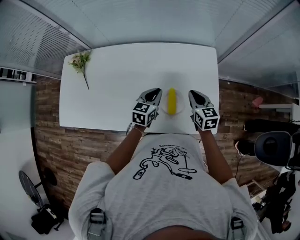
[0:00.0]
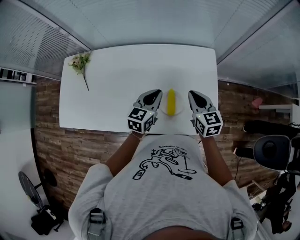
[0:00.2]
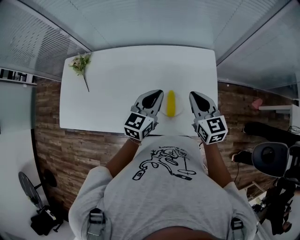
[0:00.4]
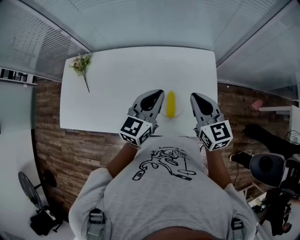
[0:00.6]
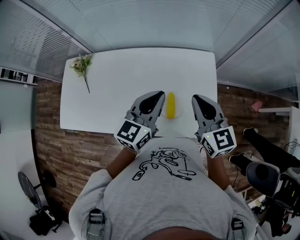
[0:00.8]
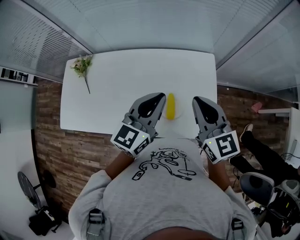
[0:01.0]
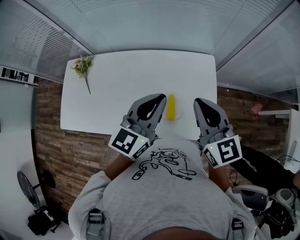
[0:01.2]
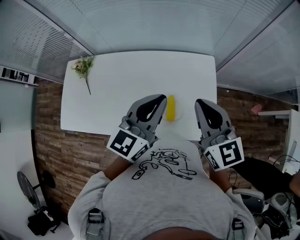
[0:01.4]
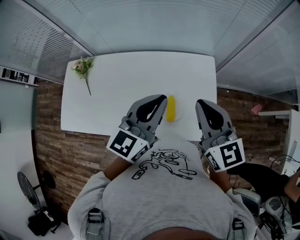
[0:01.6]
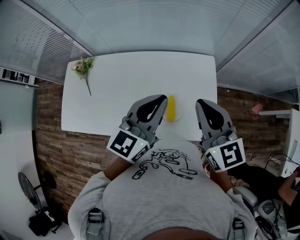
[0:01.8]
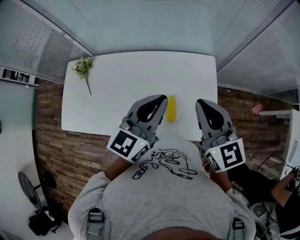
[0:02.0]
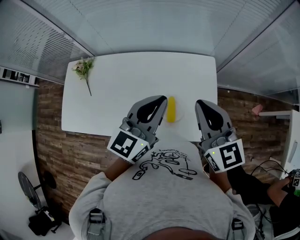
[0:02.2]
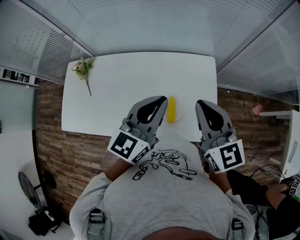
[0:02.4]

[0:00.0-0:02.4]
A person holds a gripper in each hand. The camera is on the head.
0.0 to 1.2 s: Both grippers move upward, about 25 cm. The left gripper turns by some 30 degrees. The right gripper changes its angle by roughly 20 degrees.
1.2 to 2.4 s: The grippers move only a little.

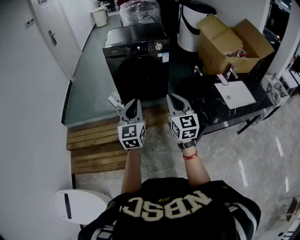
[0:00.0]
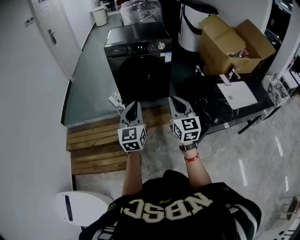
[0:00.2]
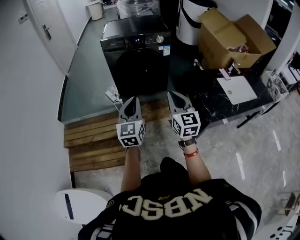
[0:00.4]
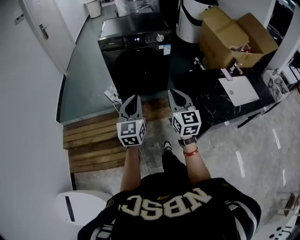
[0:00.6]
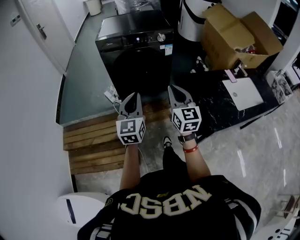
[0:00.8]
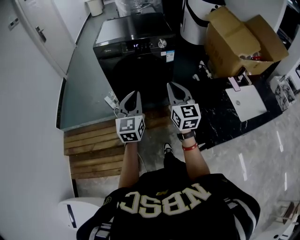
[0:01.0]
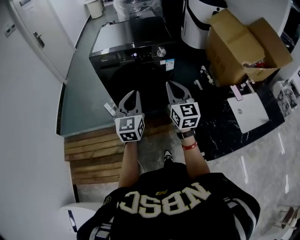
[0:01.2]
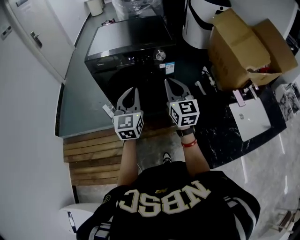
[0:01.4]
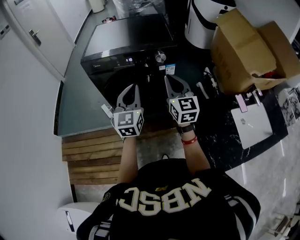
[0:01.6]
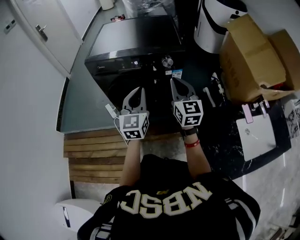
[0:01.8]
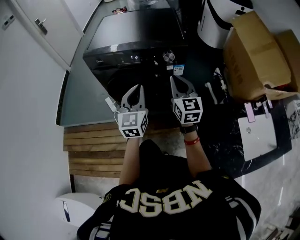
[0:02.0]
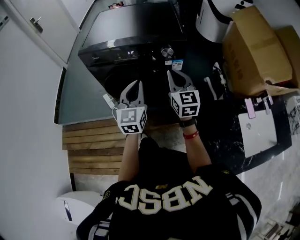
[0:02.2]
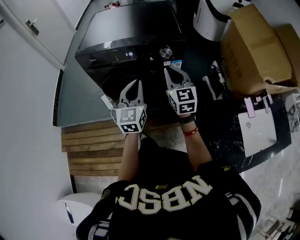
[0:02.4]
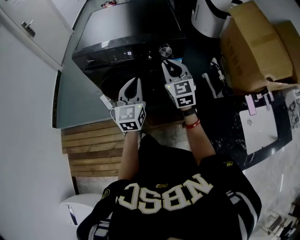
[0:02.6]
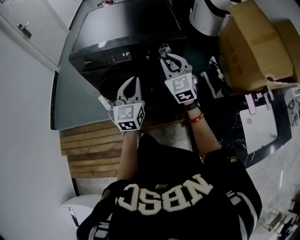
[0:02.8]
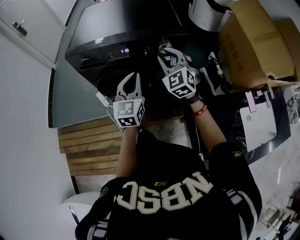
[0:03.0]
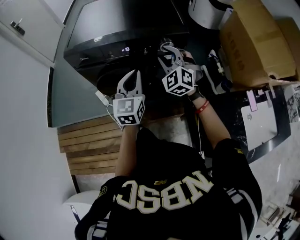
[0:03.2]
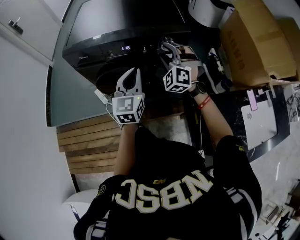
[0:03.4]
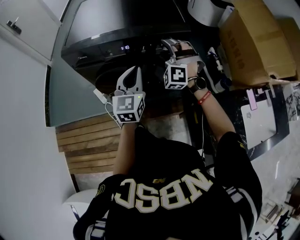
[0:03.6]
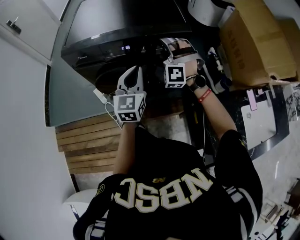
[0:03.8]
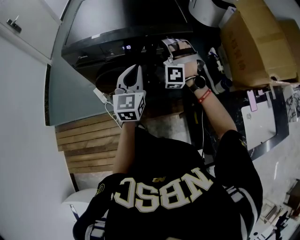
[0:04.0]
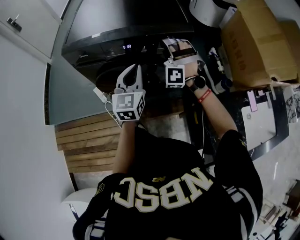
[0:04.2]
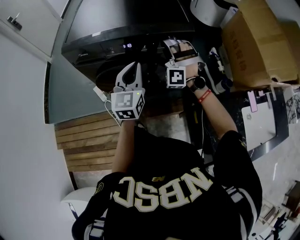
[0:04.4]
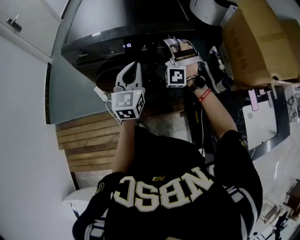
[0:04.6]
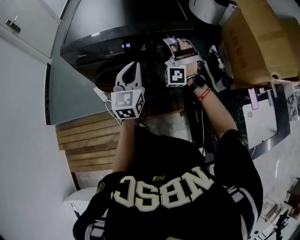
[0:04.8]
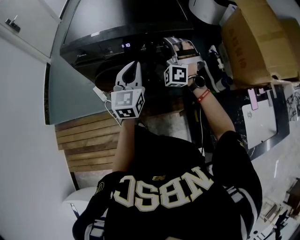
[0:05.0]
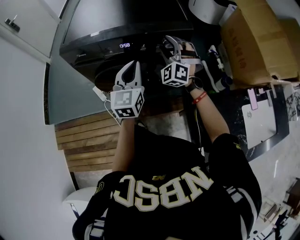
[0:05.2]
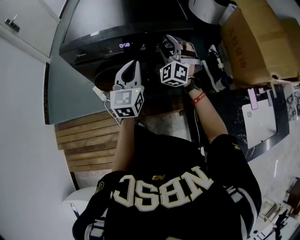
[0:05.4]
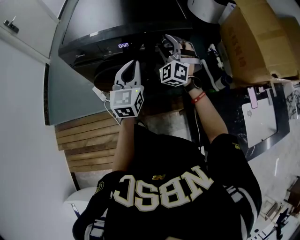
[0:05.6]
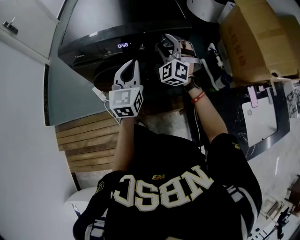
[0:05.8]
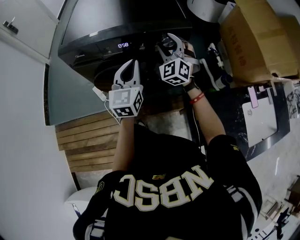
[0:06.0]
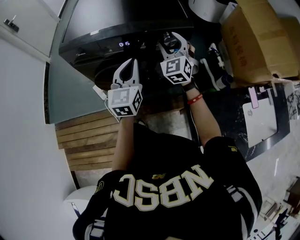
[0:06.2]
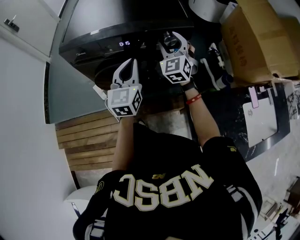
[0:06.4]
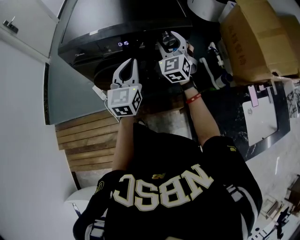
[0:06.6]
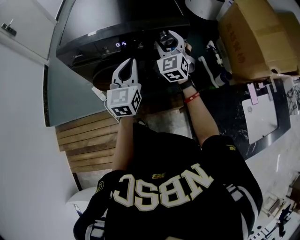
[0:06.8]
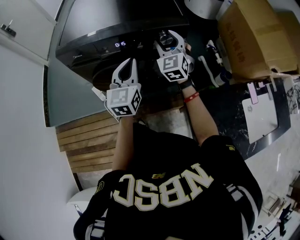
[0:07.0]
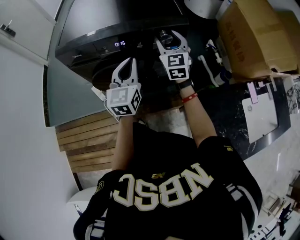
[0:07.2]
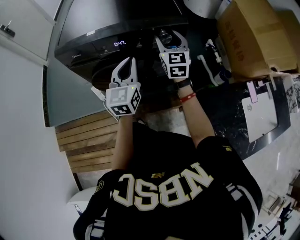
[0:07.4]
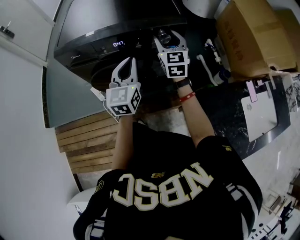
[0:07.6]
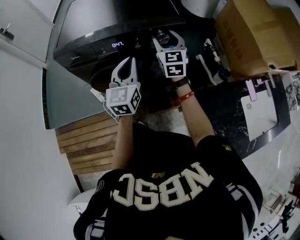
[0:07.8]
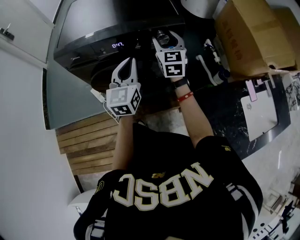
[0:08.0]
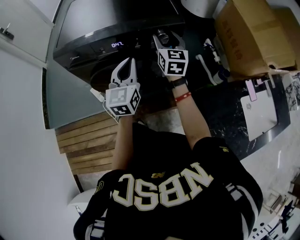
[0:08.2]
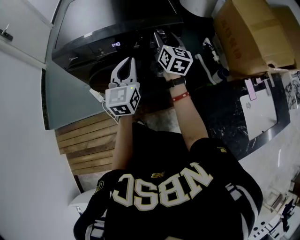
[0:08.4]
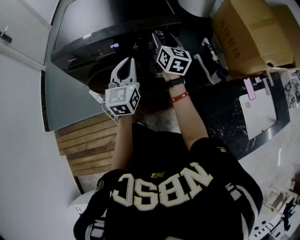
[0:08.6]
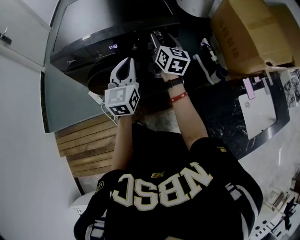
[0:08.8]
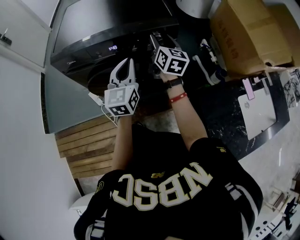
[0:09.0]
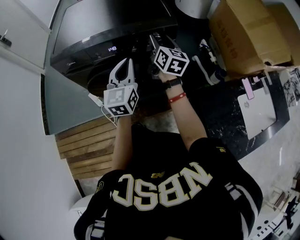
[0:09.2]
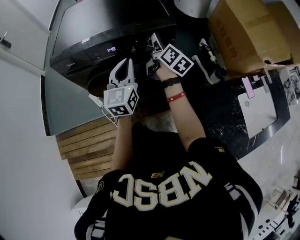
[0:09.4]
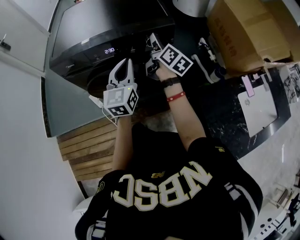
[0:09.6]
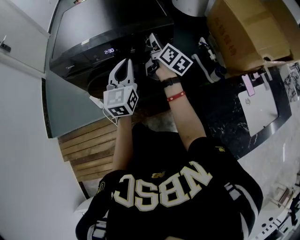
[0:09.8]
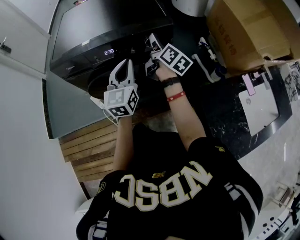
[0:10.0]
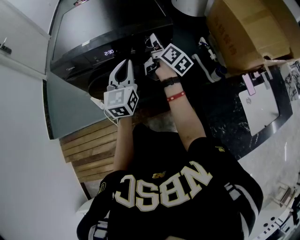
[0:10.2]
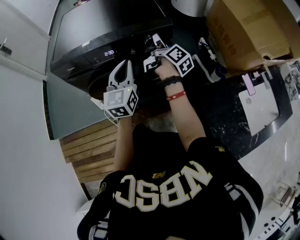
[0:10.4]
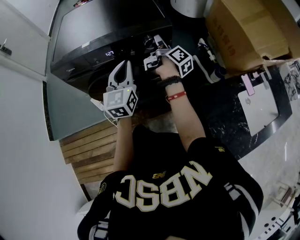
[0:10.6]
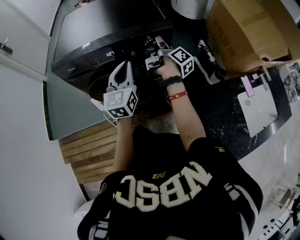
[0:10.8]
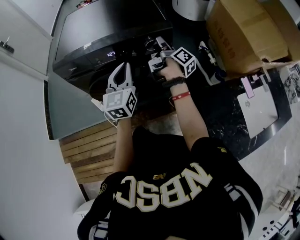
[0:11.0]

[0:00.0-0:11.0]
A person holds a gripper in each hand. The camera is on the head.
0.0 to 1.6 s: Both grippers are carried forward, approximately 40 cm.
1.6 to 3.2 s: The two grippers go roughly 15 cm forward and downward. The right gripper rotates around the line of its fingers by some 50 degrees, counterclockwise from behind, and opens its fingers.
3.2 to 4.8 s: The right gripper ends up about 5 cm from where it was, and turns by roughly 40 degrees.
4.8 to 6.2 s: The right gripper rolls clockwise, seen from behind, by about 50 degrees.
6.2 to 7.8 s: The right gripper turns by roughly 30 degrees.
7.8 to 9.4 s: The right gripper rolls clockwise, seen from behind, by approximately 60 degrees.
9.4 to 11.0 s: The right gripper turns by some 40 degrees.

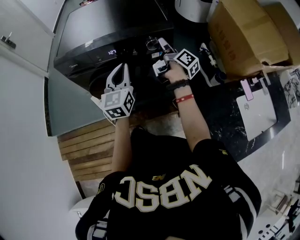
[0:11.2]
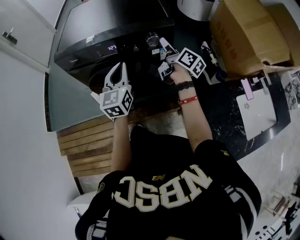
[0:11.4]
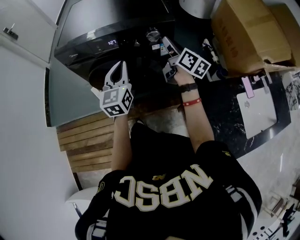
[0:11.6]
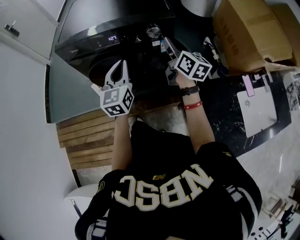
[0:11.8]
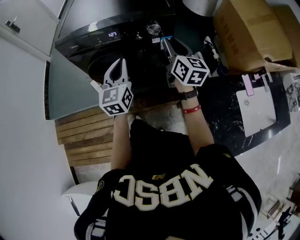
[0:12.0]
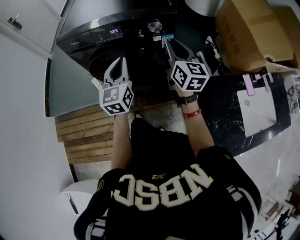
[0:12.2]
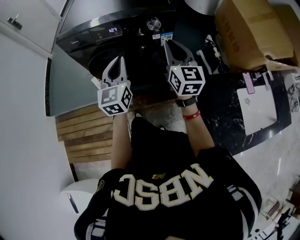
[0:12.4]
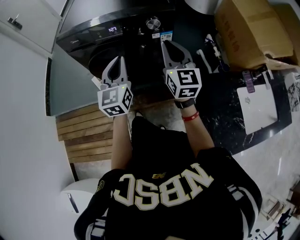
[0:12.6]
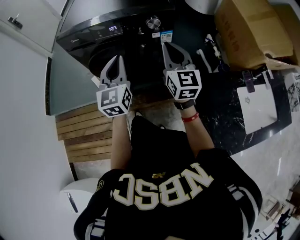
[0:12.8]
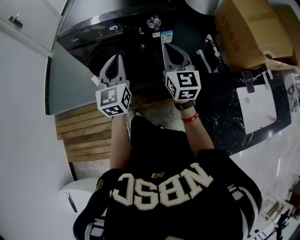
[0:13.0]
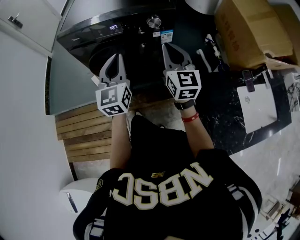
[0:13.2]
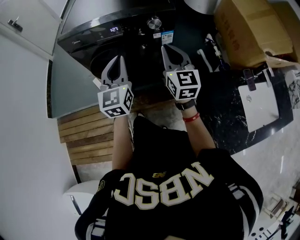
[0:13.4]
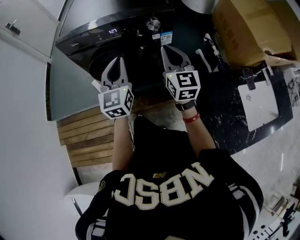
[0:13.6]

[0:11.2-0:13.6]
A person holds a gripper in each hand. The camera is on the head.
11.2 to 12.4 s: The right gripper goes some 15 cm backward, twists some 70 degrees counterclockwise, seen from behind, and closes its fingers; the left gripper goes roughly 10 cm backward.
12.4 to 13.6 s: The grippers make only small movements.

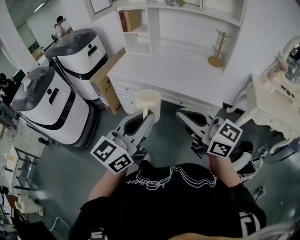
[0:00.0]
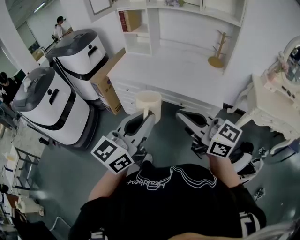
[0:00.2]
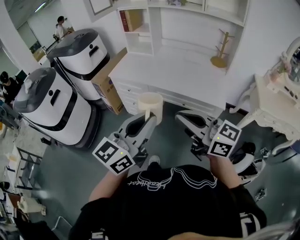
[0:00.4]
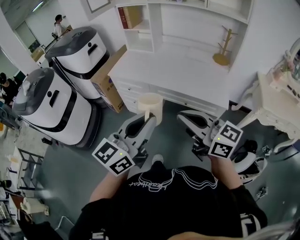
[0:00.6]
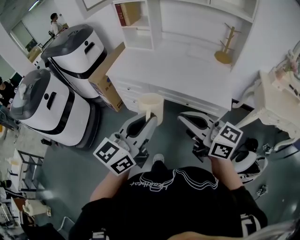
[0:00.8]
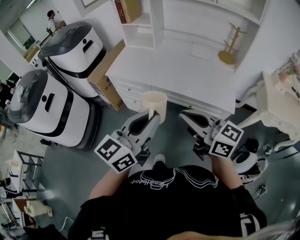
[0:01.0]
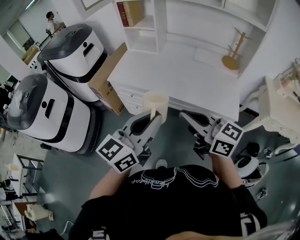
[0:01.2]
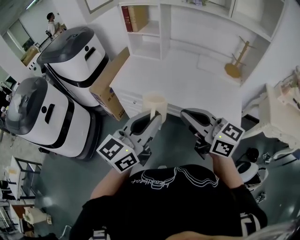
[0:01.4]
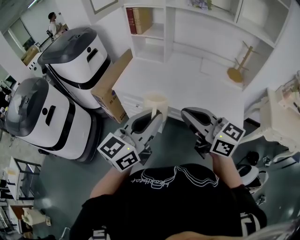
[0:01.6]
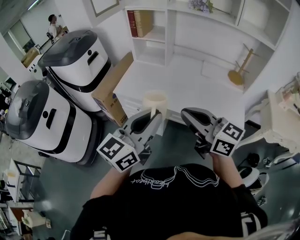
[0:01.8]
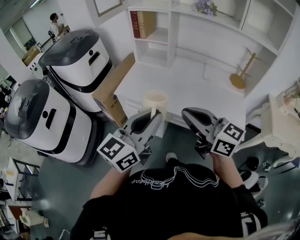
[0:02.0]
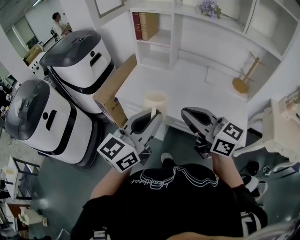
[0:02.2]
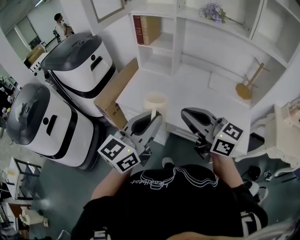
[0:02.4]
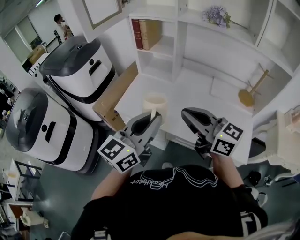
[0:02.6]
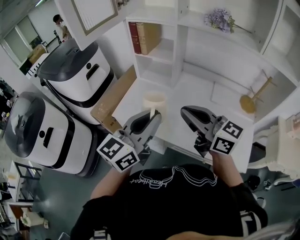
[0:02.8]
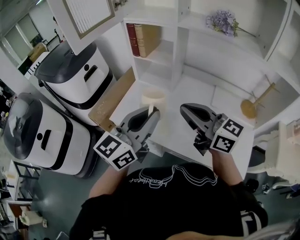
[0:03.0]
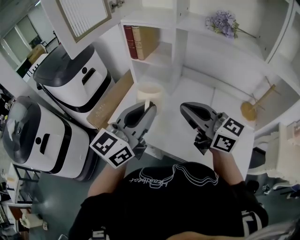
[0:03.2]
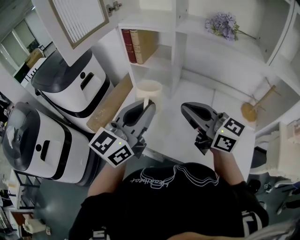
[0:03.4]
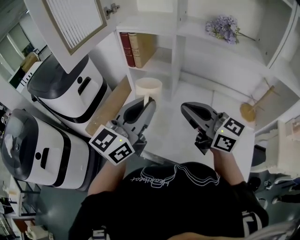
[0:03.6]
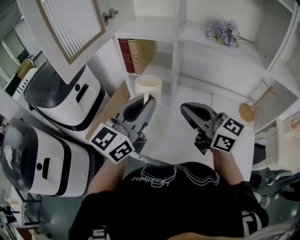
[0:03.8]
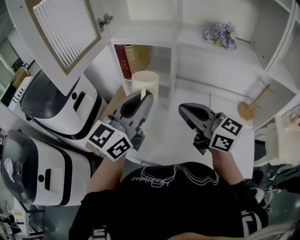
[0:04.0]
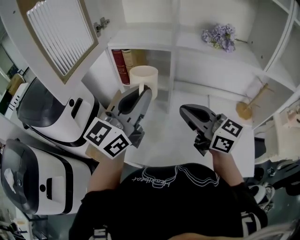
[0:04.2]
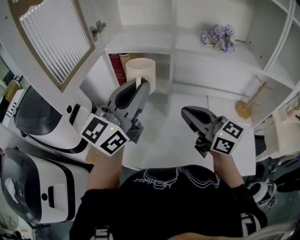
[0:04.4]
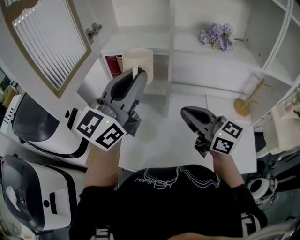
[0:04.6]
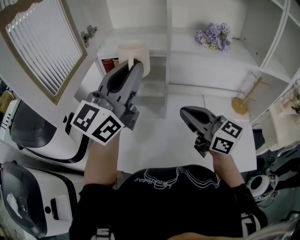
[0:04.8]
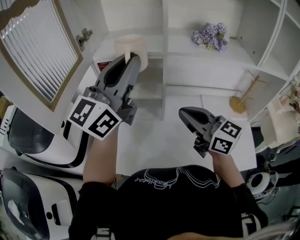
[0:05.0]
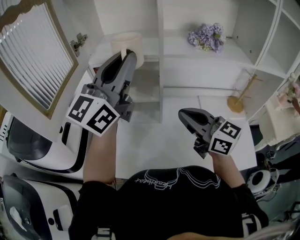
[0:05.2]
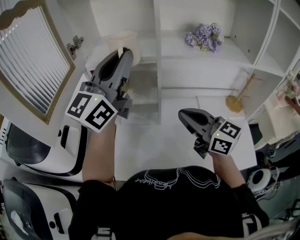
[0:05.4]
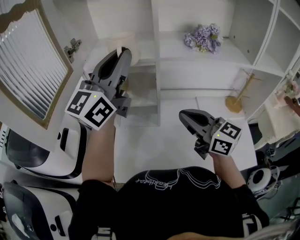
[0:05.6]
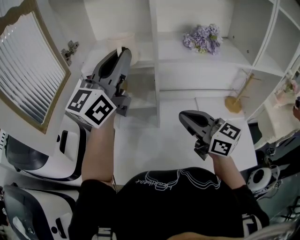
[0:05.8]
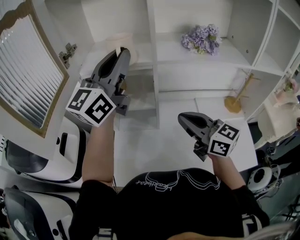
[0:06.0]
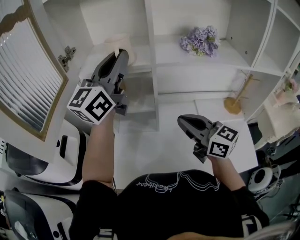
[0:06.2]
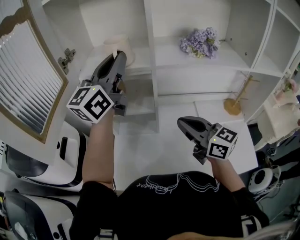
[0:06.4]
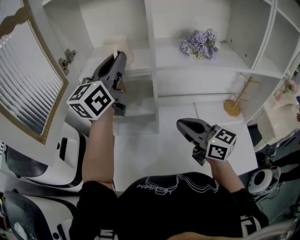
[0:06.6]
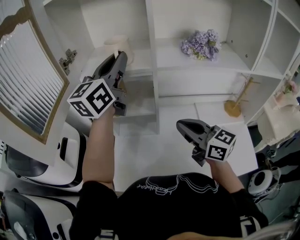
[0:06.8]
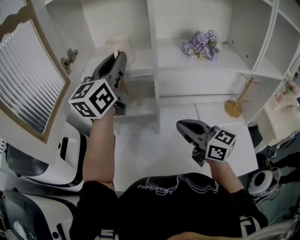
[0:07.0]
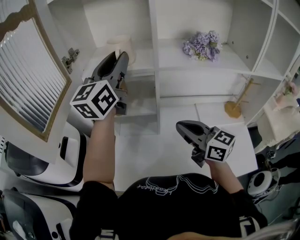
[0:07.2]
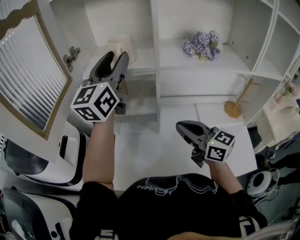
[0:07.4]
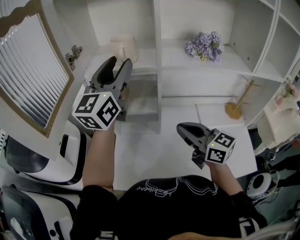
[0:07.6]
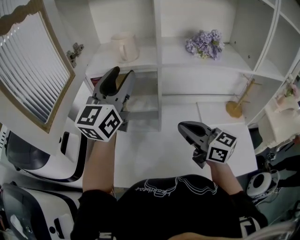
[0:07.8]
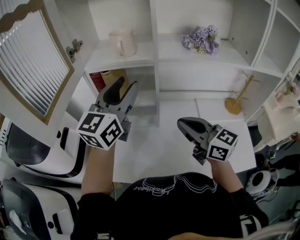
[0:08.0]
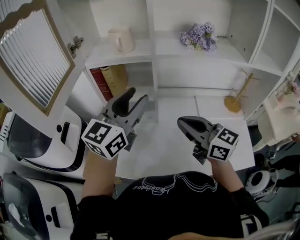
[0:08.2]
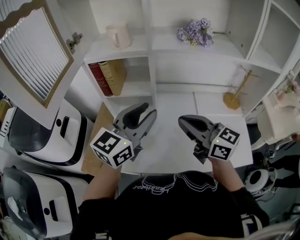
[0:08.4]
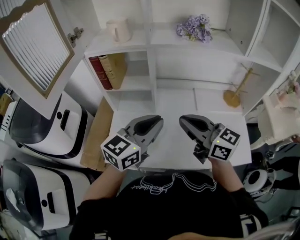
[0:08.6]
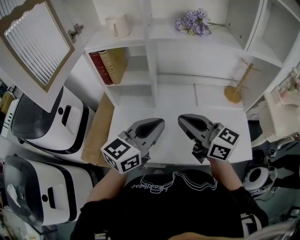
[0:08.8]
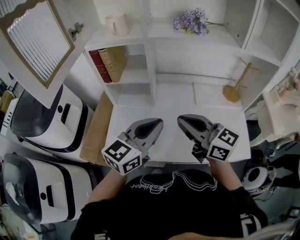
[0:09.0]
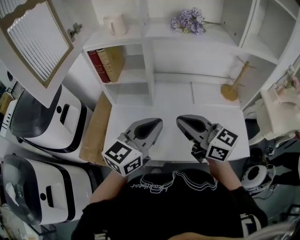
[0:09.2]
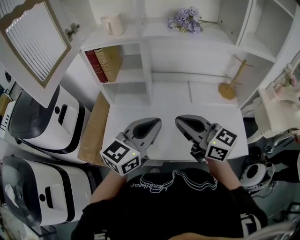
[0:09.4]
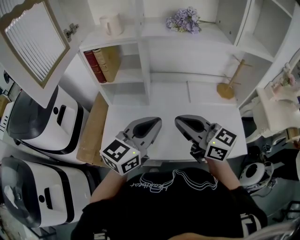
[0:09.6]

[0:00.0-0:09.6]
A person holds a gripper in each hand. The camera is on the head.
0.0 to 1.6 s: Both grippers move forward, about 25 cm.
1.6 to 3.2 s: The grippers both shift forward by about 30 cm.
3.2 to 4.8 s: The left gripper goes approximately 25 cm forward and upward, and rotates some 20 degrees; the right gripper is displaced forward by approximately 15 cm, and turns by some 20 degrees.
4.8 to 6.4 s: The right gripper shifts by approximately 5 cm, while the left gripper shifts some 15 cm forward.
6.4 to 8.0 s: The left gripper shifts roughly 10 cm backward and downward, and opens its fingers.
8.0 to 9.6 s: The left gripper moves backward, to the right and downward, approximately 25 cm, changes its angle by some 20 degrees, and closes. The right gripper shifts approximately 10 cm backward.
